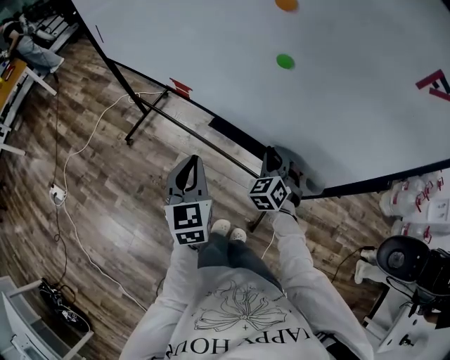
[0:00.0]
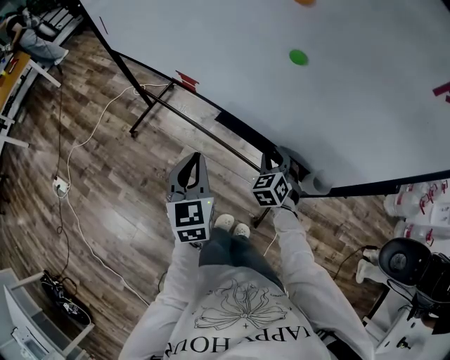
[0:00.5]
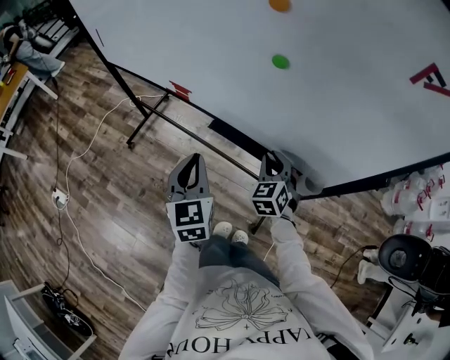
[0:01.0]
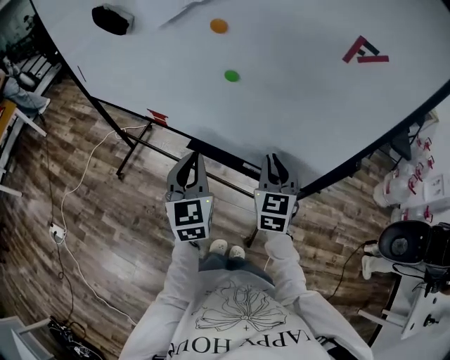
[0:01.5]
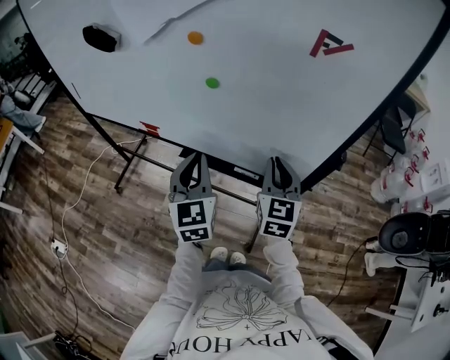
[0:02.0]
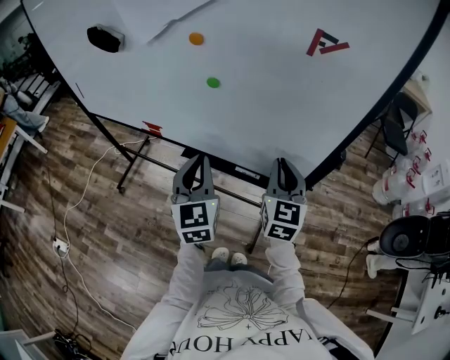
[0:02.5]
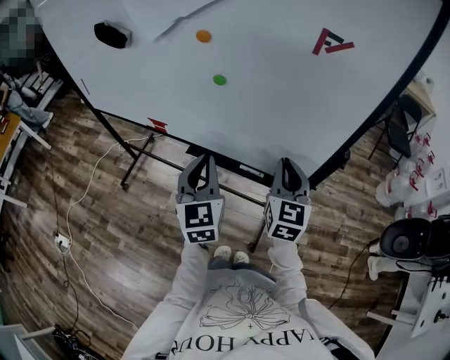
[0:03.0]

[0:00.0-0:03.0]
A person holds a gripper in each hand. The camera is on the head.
0:00.0 to 0:01.5: The right gripper goes approximately 15 cm upward, and swivels roughly 30 degrees. Meanwhile the left gripper shifts some 10 cm to the right and upward.
0:01.5 to 0:03.0: The left gripper is displaced to the right by some 5 cm. The right gripper moves to the right and upward, about 10 cm.

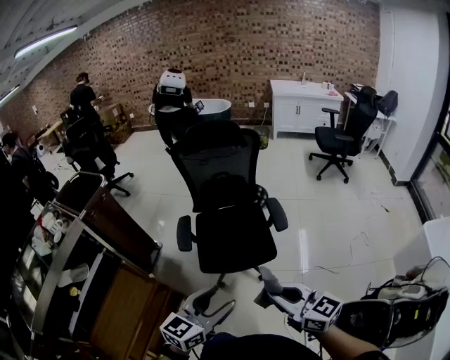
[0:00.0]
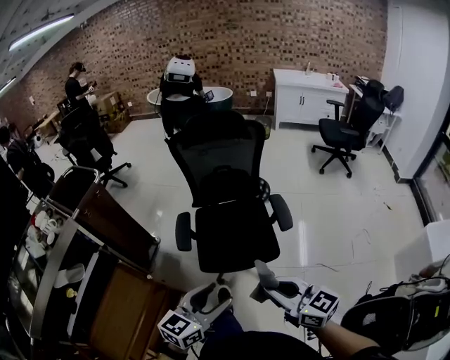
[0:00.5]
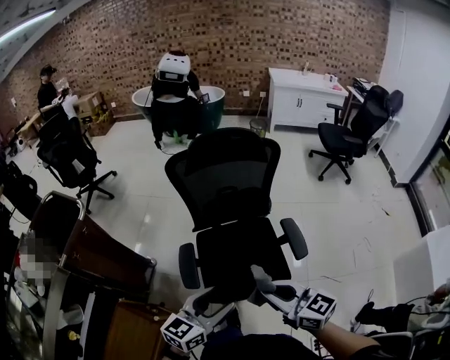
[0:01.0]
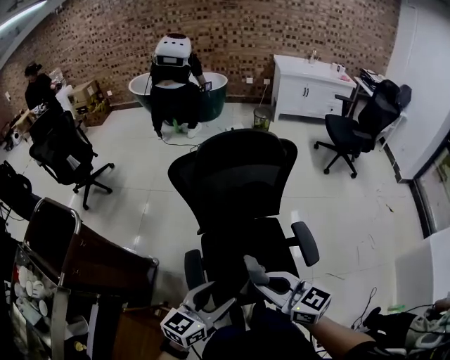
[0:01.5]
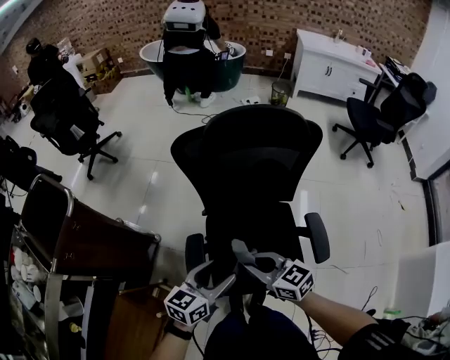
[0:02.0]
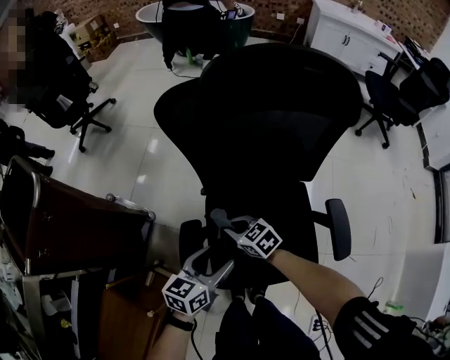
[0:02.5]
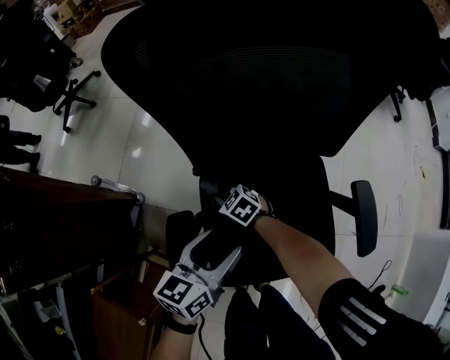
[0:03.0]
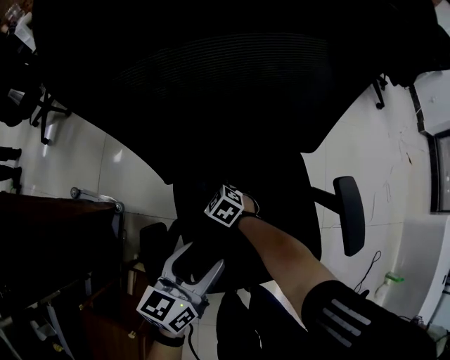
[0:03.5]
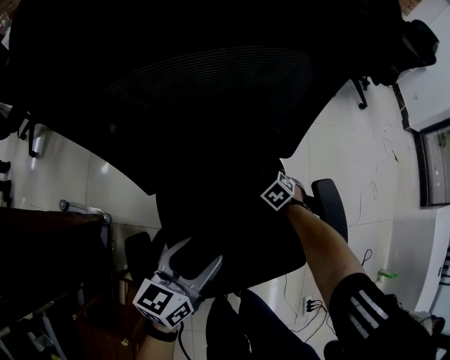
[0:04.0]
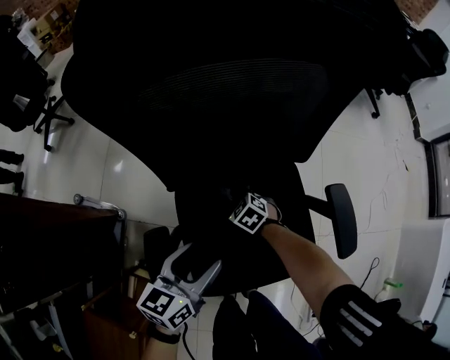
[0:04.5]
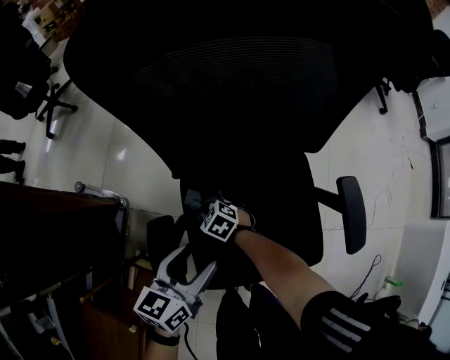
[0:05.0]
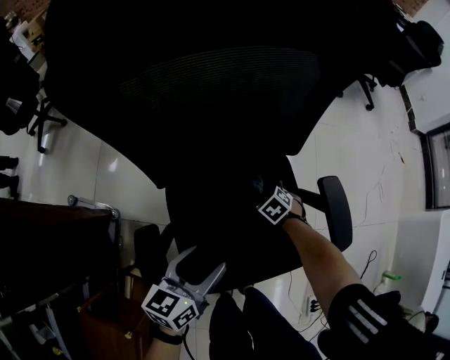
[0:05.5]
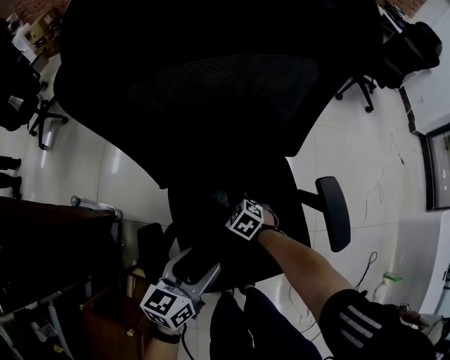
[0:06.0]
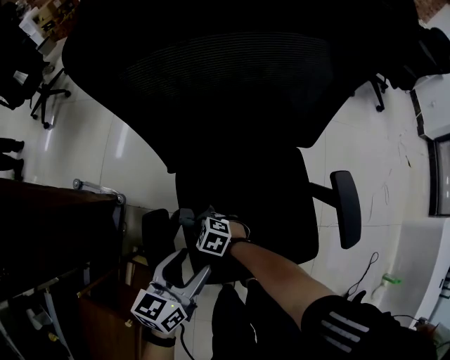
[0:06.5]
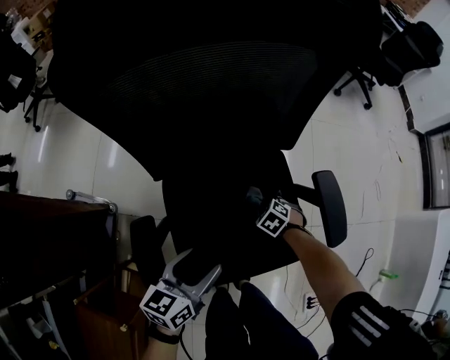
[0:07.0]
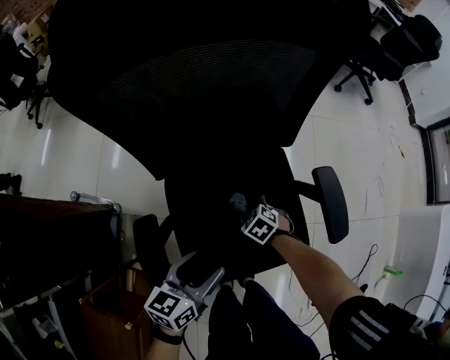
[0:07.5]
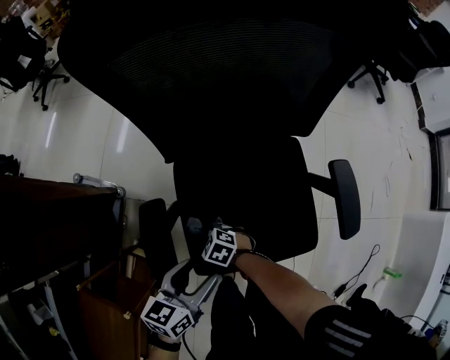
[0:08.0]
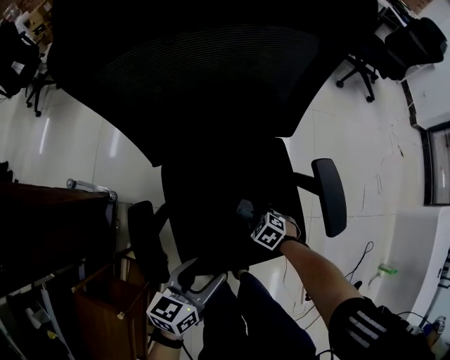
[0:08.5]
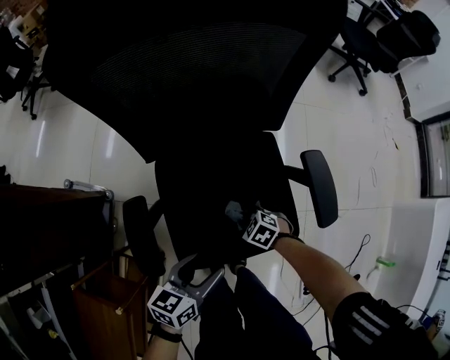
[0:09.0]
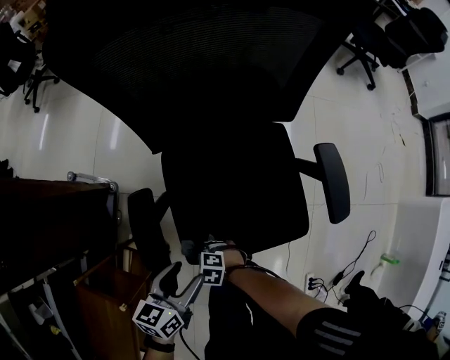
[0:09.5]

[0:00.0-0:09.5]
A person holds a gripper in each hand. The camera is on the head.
0:00.0 to 0:02.0: The pair of grippers is taken forward, roughly 50 cm.
0:02.0 to 0:04.0: The right gripper shifts some 50 cm downward, and points its fingers roughly 50 degrees further downward. Meanwhile the left gripper travels downward by approximately 20 cm.
0:07.5 to 0:09.5: The left gripper moves about 10 cm, while the right gripper changes place by roughly 30 cm, and changes its angle by some 30 degrees.

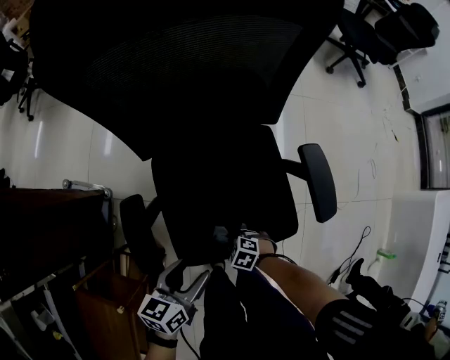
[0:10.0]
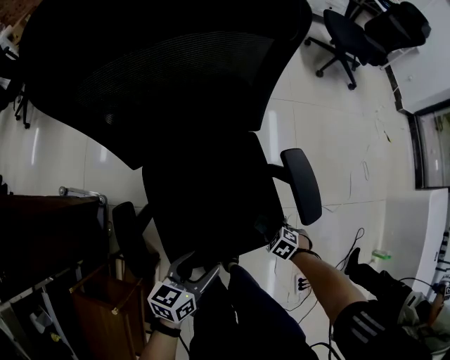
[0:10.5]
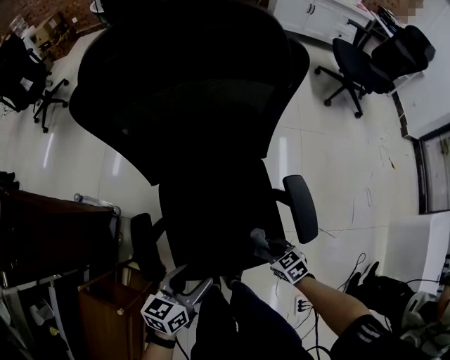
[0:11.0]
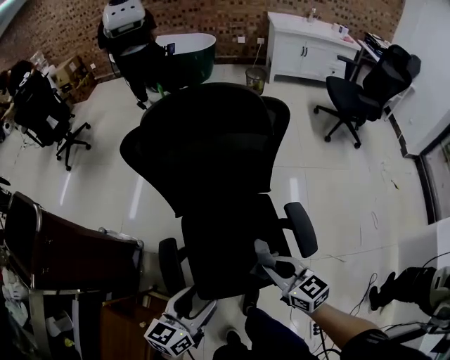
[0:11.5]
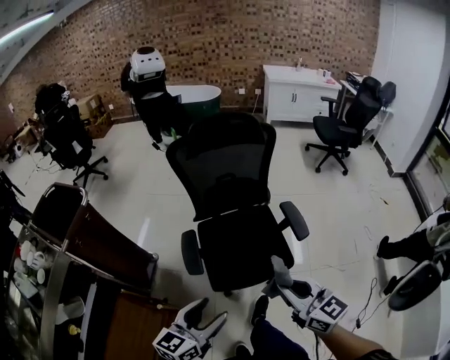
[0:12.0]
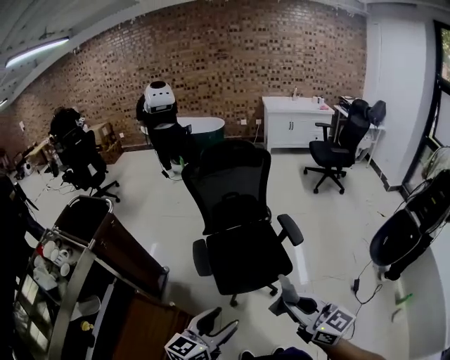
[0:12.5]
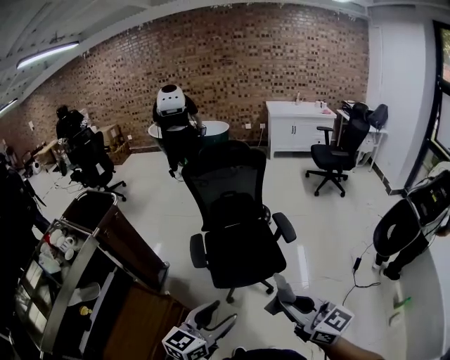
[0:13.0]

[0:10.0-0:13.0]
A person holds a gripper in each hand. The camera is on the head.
0:10.0 to 0:11.5: The left gripper is displaced upward by roughly 20 cm, while the right gripper heads upward, covering approximately 40 cm, and tips its fingers upward by some 50 degrees.
0:11.5 to 0:13.0: Both grippers move backward and upward, roughly 50 cm. The right gripper turns by approximately 30 degrees; the left gripper turns by about 20 degrees.

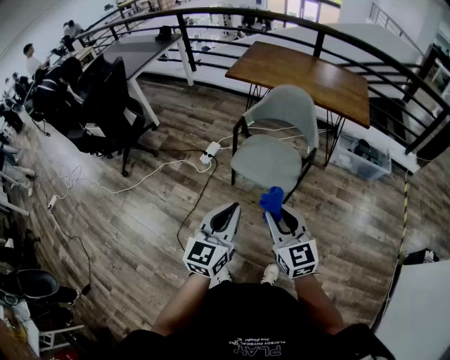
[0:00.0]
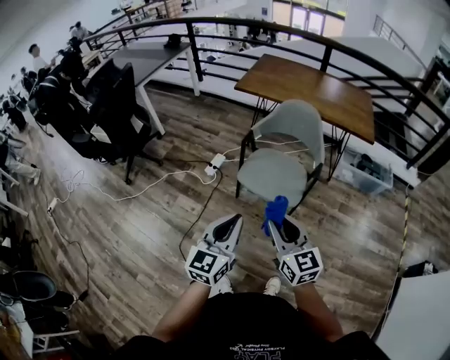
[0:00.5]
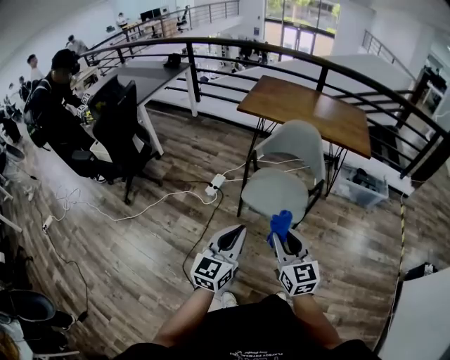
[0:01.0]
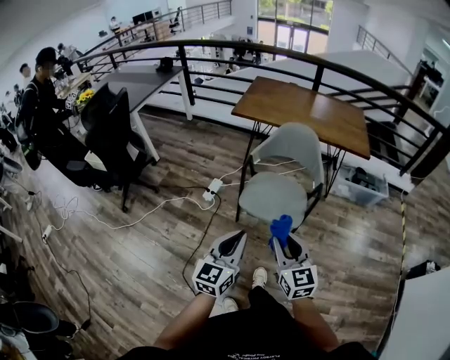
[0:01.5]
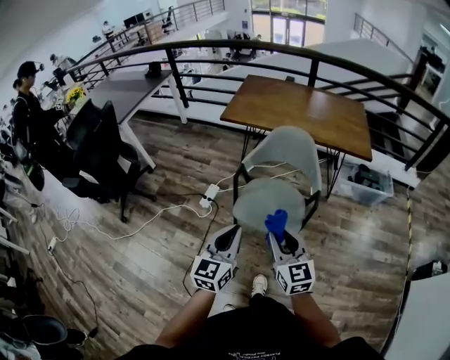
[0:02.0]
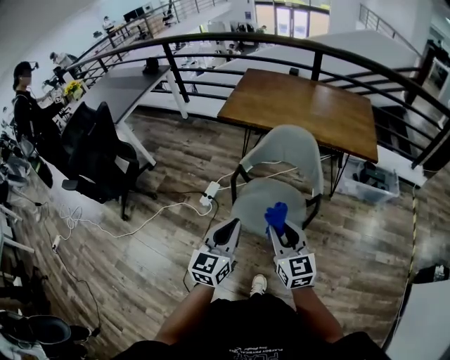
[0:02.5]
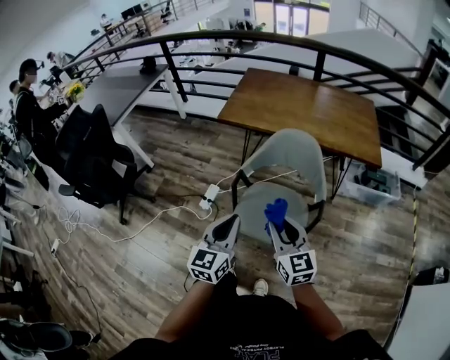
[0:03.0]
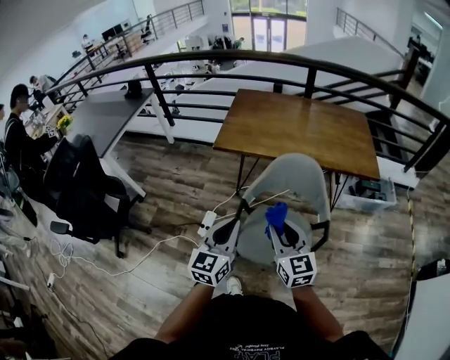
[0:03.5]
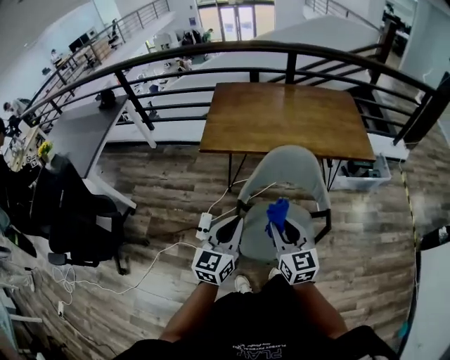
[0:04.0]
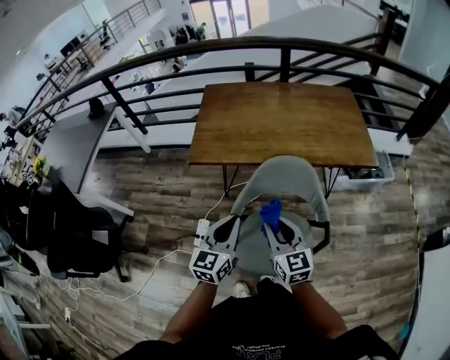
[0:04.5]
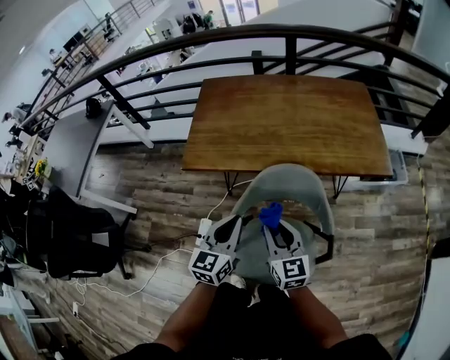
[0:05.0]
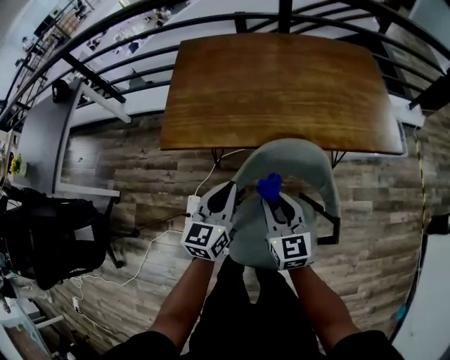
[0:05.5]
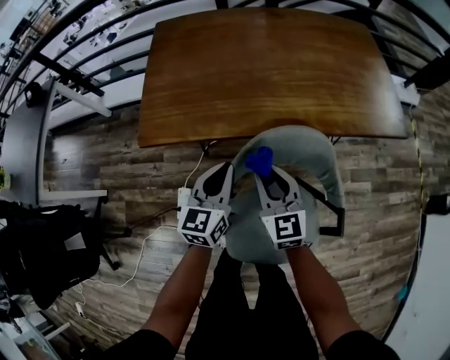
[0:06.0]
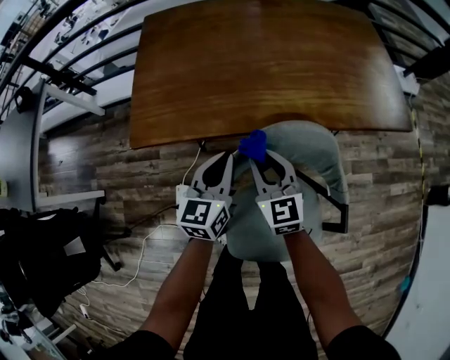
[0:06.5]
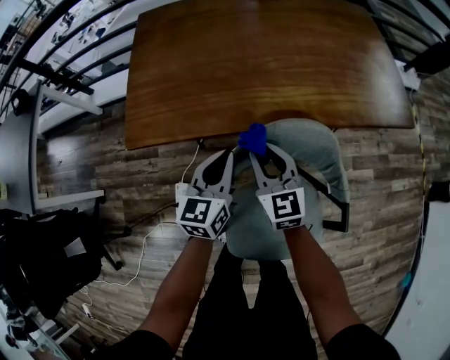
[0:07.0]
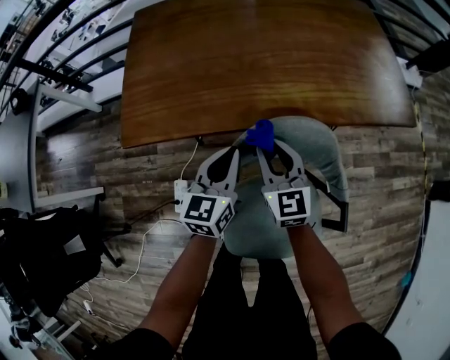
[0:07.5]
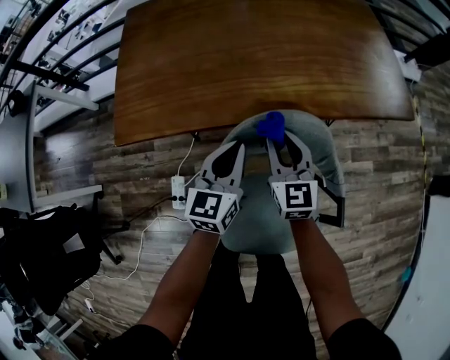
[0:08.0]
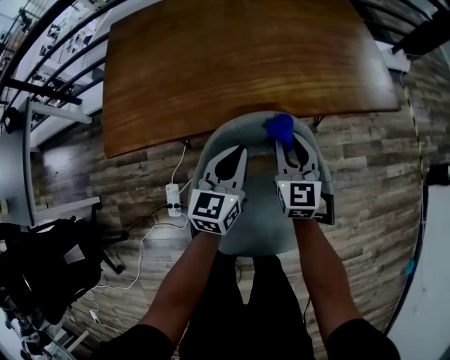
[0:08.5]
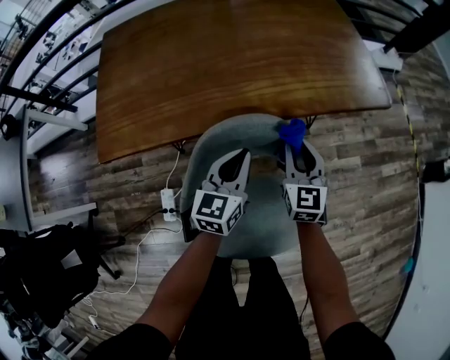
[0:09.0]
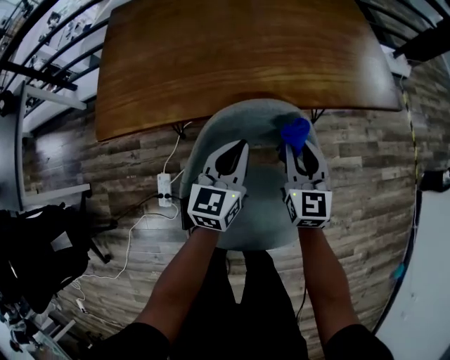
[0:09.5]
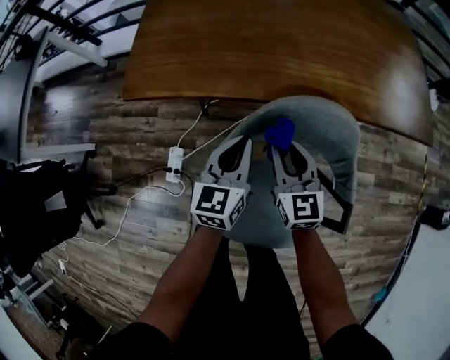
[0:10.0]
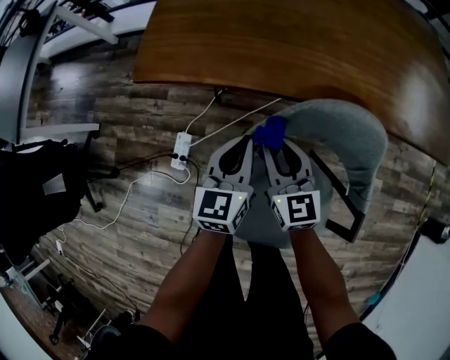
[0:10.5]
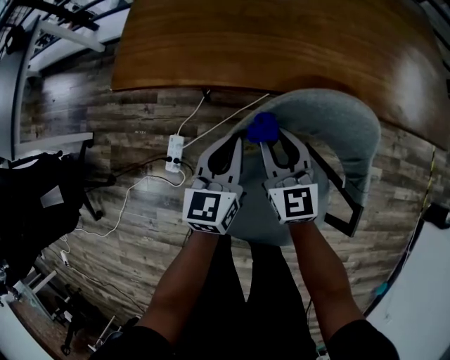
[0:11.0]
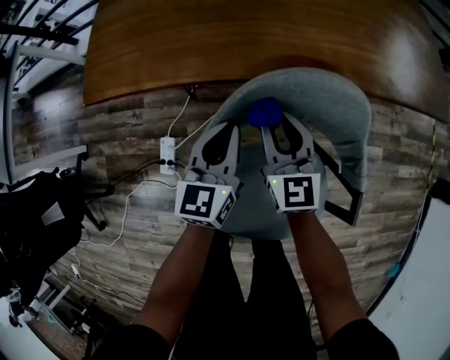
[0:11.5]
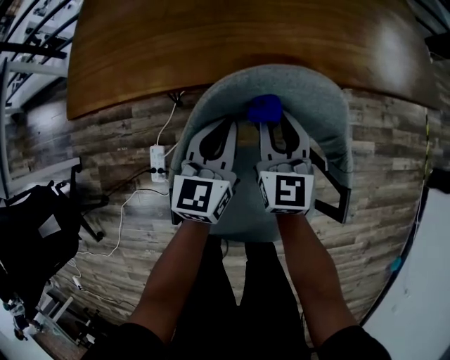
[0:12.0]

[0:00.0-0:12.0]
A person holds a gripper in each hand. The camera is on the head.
0:00.0 to 0:02.0: Both grippers move forward, some 15 cm.
0:02.0 to 0:04.0: Both grippers travel together forward, some 30 cm.
0:04.0 to 0:06.0: The grippers both shift forward and downward by about 35 cm.
0:06.0 to 0:08.0: The left gripper moves to the right, some 5 cm. Meanwhile the right gripper travels to the right and forward by approximately 10 cm.
0:08.0 to 0:10.0: The left gripper moves about 10 cm to the right and comes back; the right gripper is displaced backward by about 5 cm, and goes to the right and returns, about 15 cm each way.
0:10.0 to 0:12.0: Both grippers travel together to the right, approximately 5 cm.
